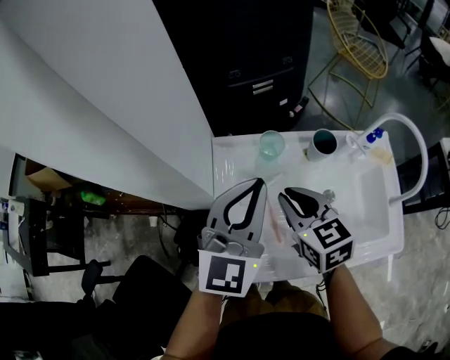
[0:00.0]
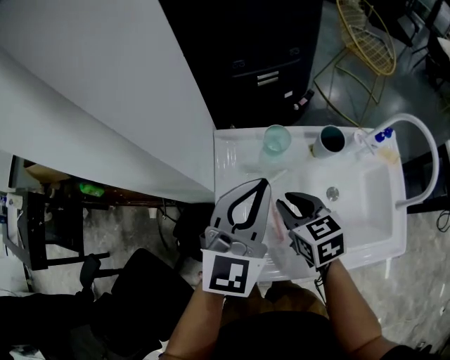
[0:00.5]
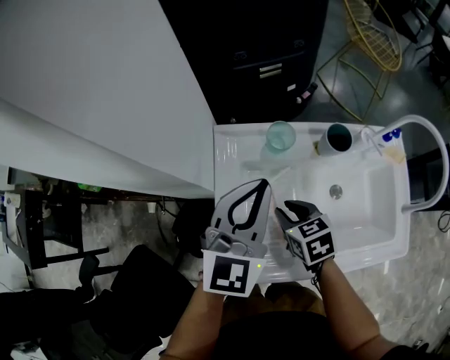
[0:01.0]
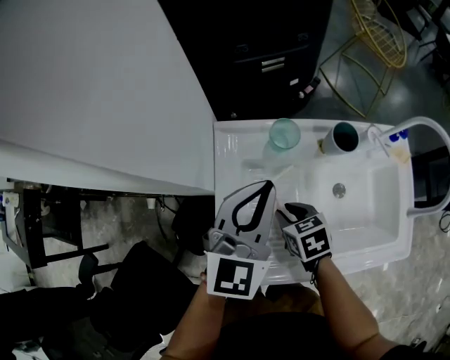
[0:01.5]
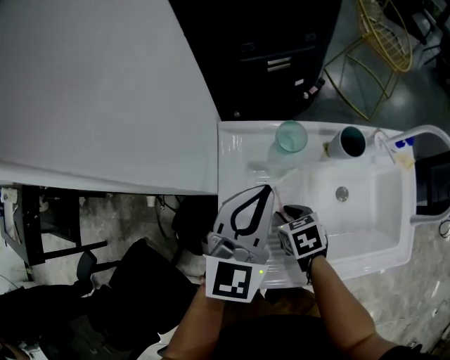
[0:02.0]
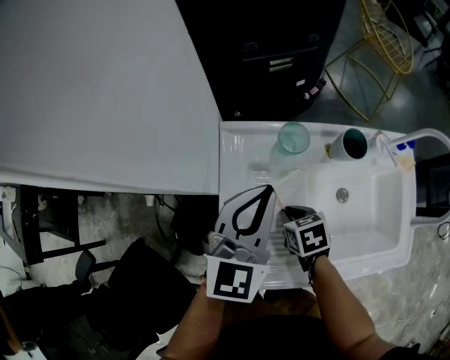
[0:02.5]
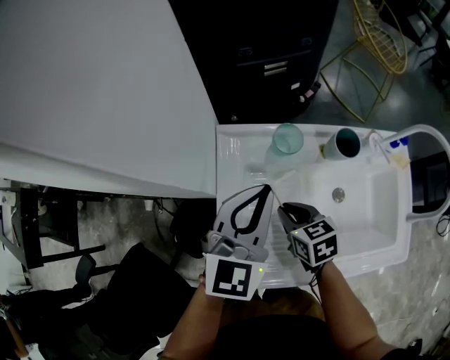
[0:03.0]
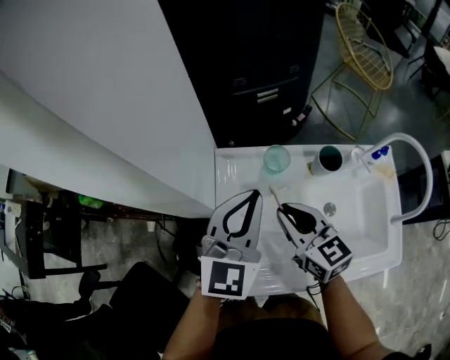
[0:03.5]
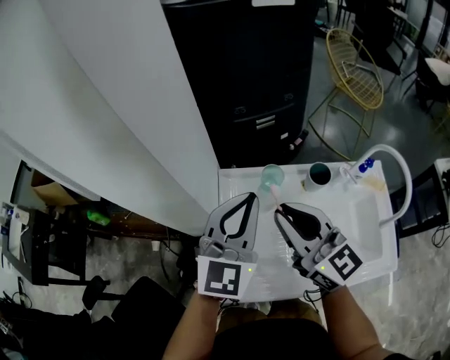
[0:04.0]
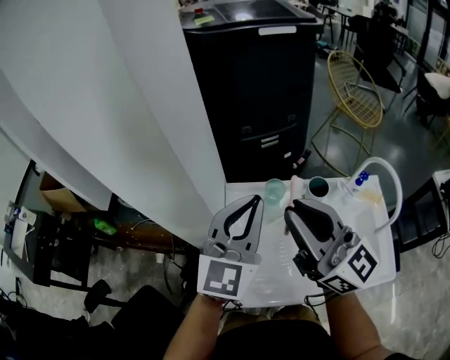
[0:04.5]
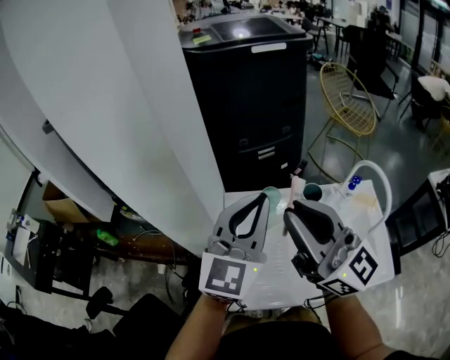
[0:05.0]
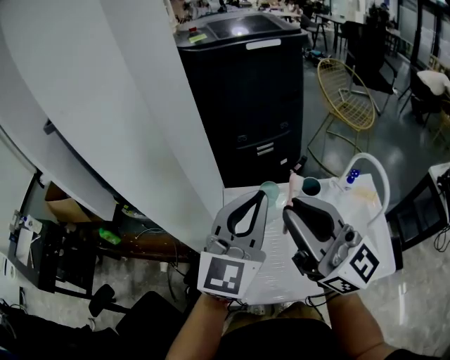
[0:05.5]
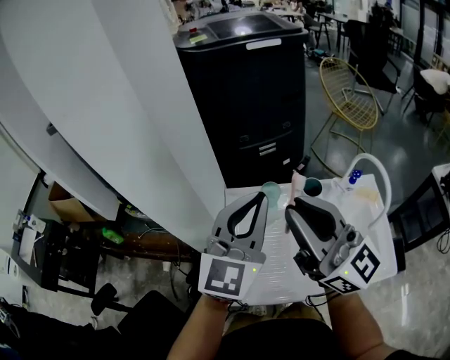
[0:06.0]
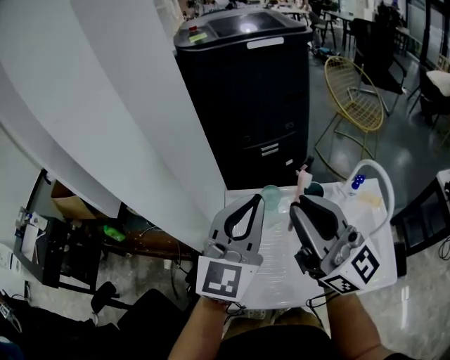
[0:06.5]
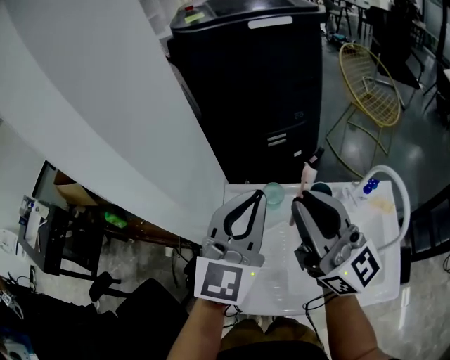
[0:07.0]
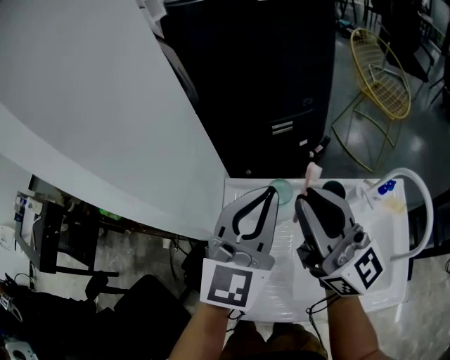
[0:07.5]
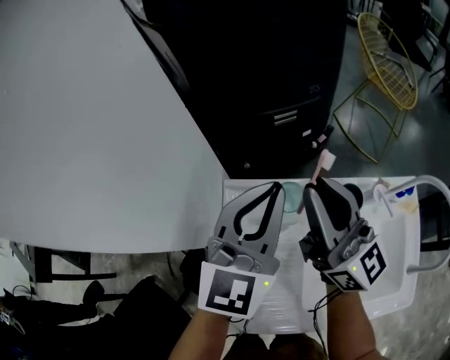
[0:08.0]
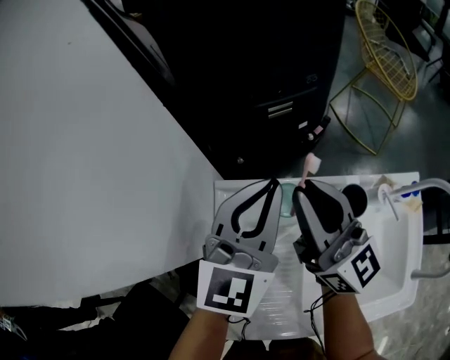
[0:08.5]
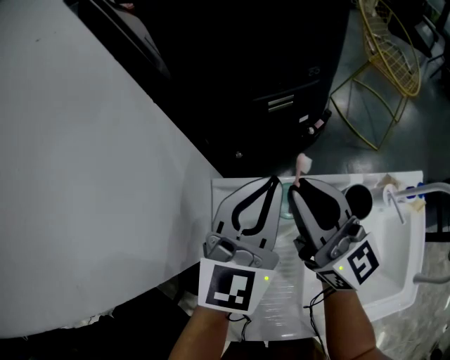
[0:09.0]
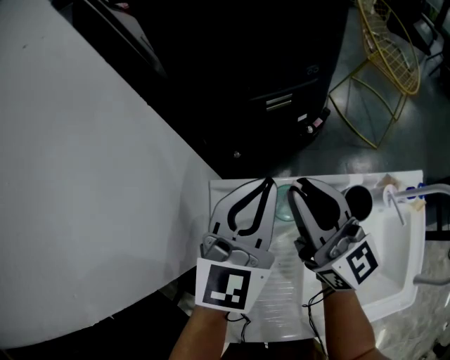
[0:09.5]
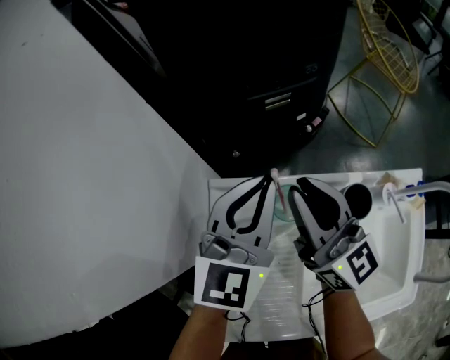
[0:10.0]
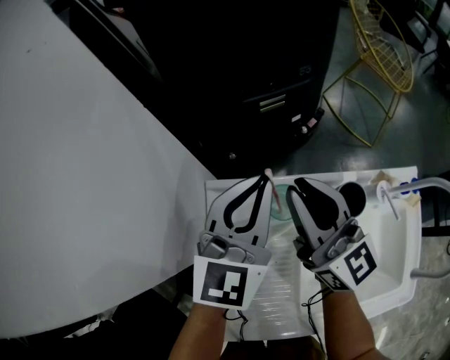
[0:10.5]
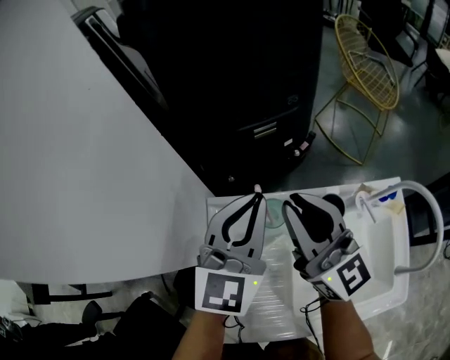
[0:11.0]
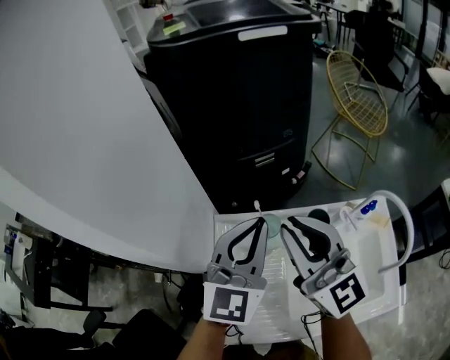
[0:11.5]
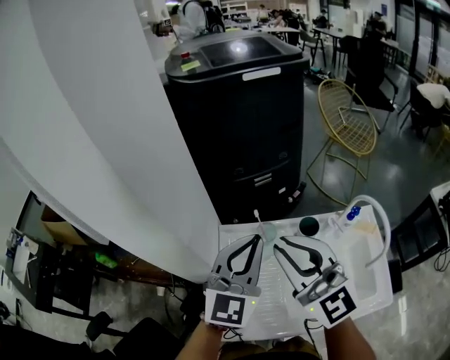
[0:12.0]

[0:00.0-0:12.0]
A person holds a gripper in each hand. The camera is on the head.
0:00.0 to 0:02.0: The left gripper is displaced downward by some 10 cm. The right gripper shifts some 20 cm downward, and tips its fingers downward by roughly 30 degrees.
0:02.0 to 0:04.0: The left gripper moves upward, roughly 10 cm; the right gripper is displaced upward by some 35 cm, and tilts its fingers approximately 70 degrees upward.
0:04.0 to 0:06.0: The left gripper travels upward and backward by approximately 10 cm. Meanwhile the right gripper is displaced upward and backward by roughly 15 cm, and turns by some 20 degrees.
0:06.0 to 0:08.0: The two grippers go about 20 cm forward and downward.
0:08.0 to 0:10.0: The right gripper shifts some 10 cm downward. The left gripper goes about 10 cm downward and forward.
0:10.0 to 0:12.0: The grippers both shift upward and backward by roughly 25 cm. The right gripper changes its angle by about 30 degrees.

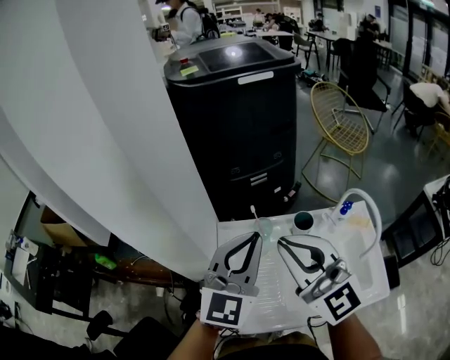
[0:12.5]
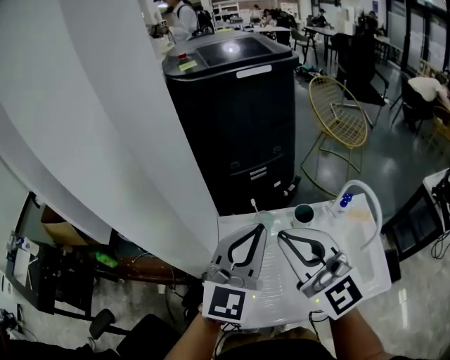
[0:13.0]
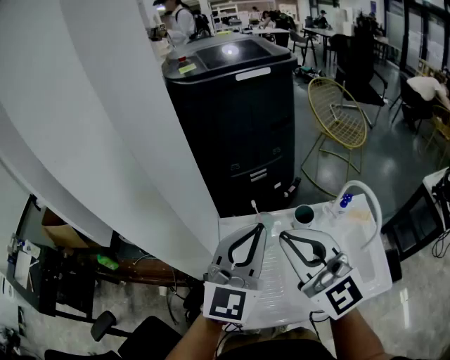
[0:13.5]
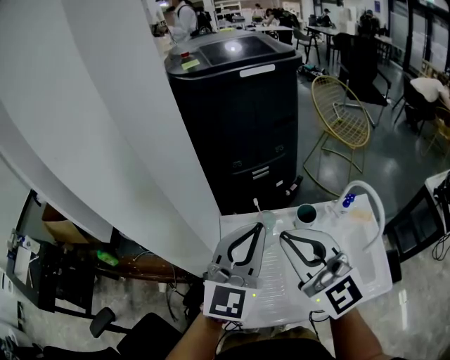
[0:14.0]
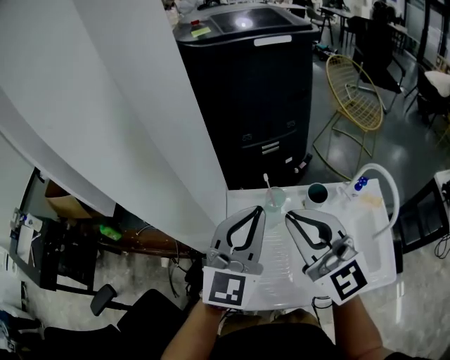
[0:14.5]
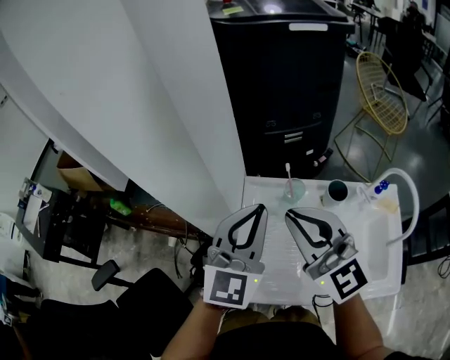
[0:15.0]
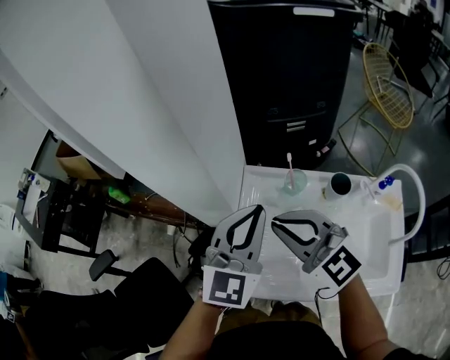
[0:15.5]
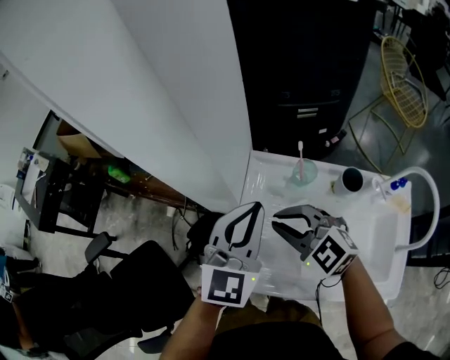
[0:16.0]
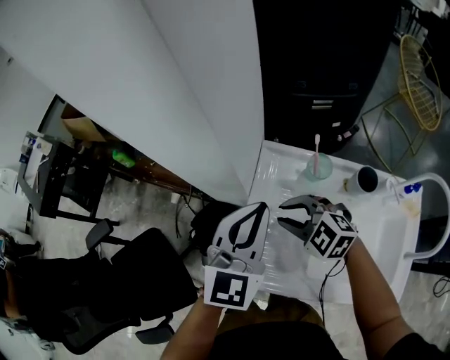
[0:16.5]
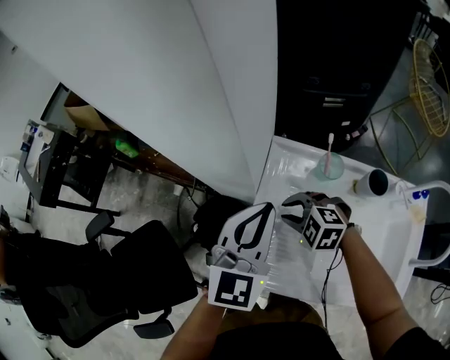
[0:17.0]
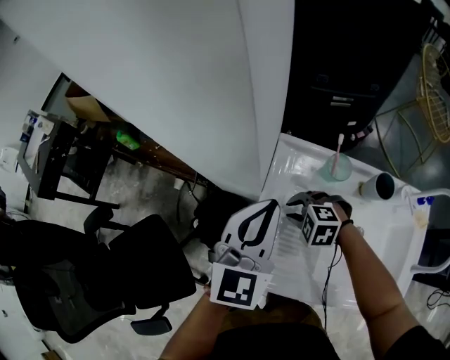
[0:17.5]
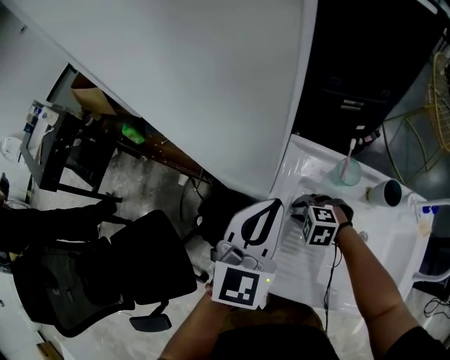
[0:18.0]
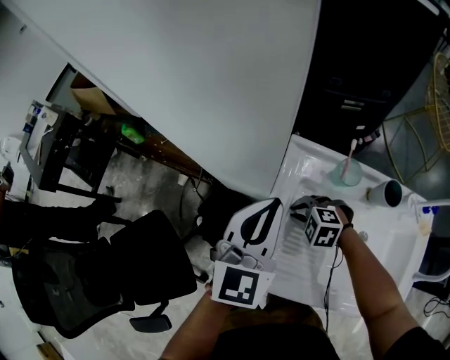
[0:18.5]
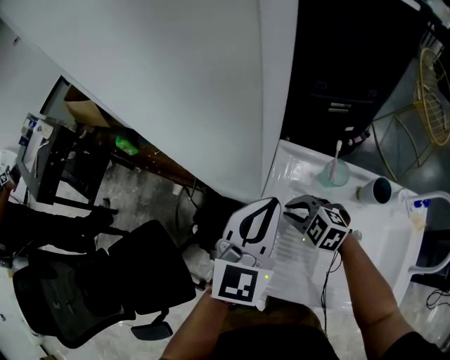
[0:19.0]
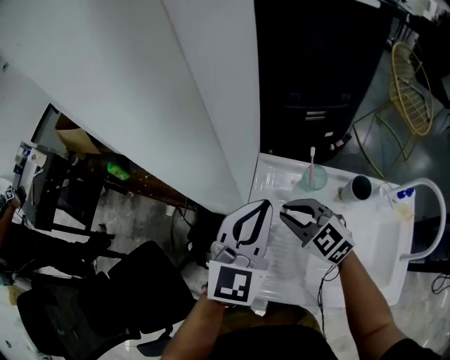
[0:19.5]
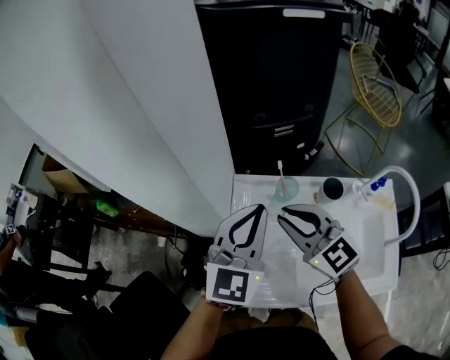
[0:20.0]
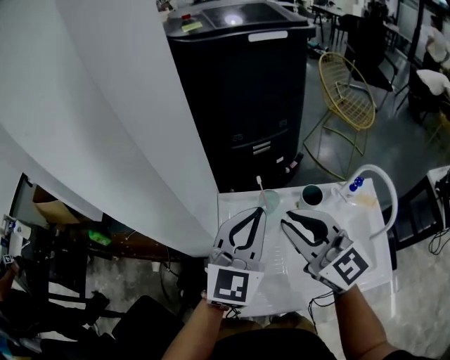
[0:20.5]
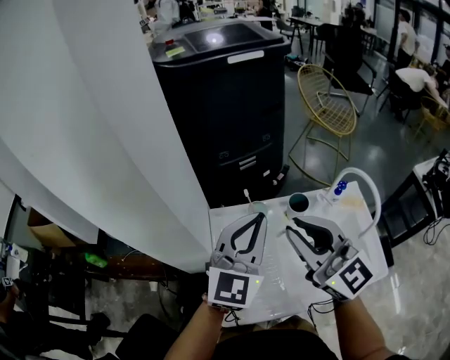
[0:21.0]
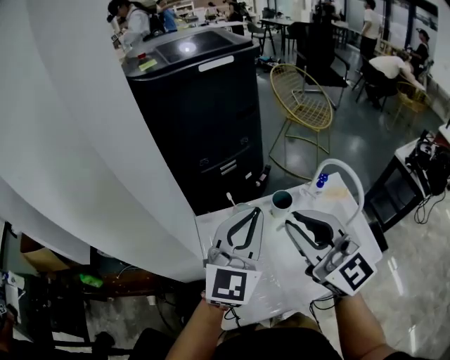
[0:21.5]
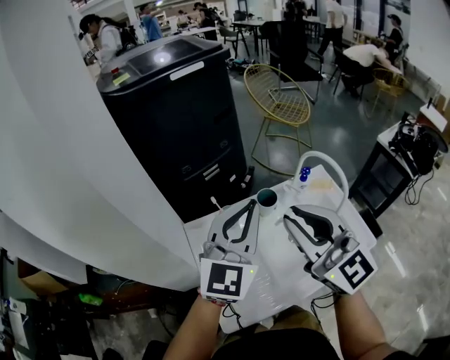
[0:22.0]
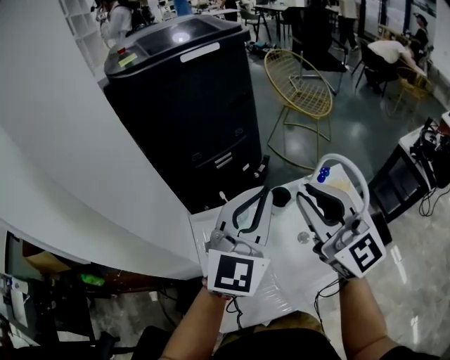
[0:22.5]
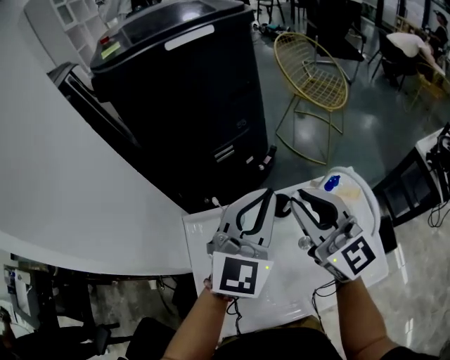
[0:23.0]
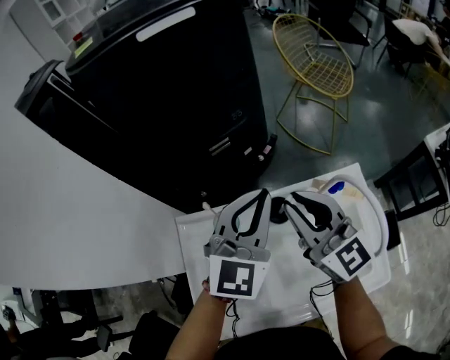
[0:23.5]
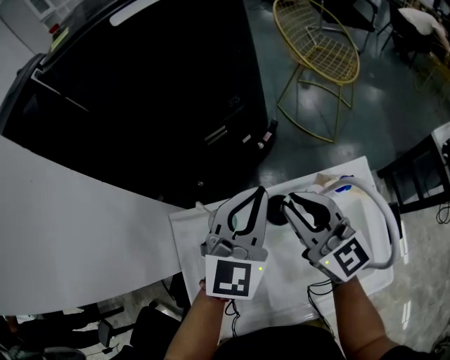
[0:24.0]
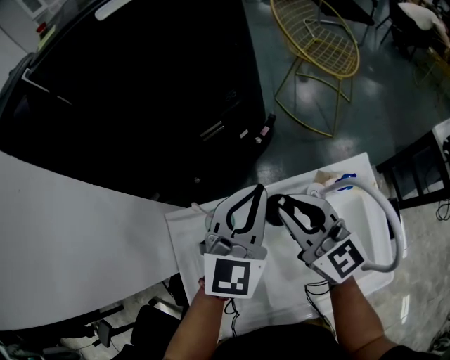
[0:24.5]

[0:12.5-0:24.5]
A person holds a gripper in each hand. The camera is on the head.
0:12.5 to 0:14.5: There are only small adjustments of the grippers.
0:14.5 to 0:16.5: The right gripper moves downward, approximately 30 cm, and angles its fingers downward, by roughly 50 degrees. The left gripper is displaced downward by roughly 10 cm, and swivels roughly 20 degrees.
0:16.5 to 0:18.5: The right gripper travels downward by about 15 cm, and changes its angle by about 20 degrees. The left gripper ends up some 5 cm from where it was.
0:18.5 to 0:20.5: The right gripper is displaced upward by roughly 35 cm, and angles its fingers upward, by about 60 degrees, while the left gripper changes place by approximately 15 cm, and rotates about 20 degrees.
0:20.5 to 0:22.5: The two grippers go roughly 15 cm to the right and upward. The right gripper turns by roughly 20 degrees.
0:22.5 to 0:24.5: Both grippers move downward and forward, roughly 20 cm. The right gripper changes its angle by roughly 20 degrees.

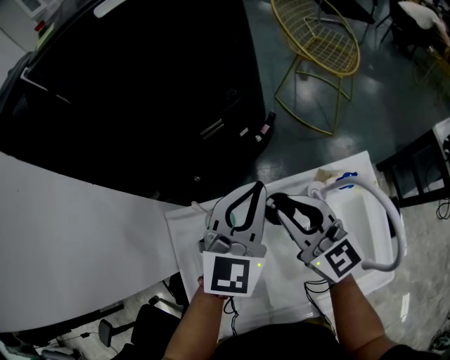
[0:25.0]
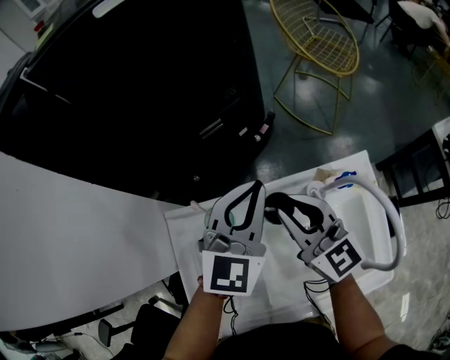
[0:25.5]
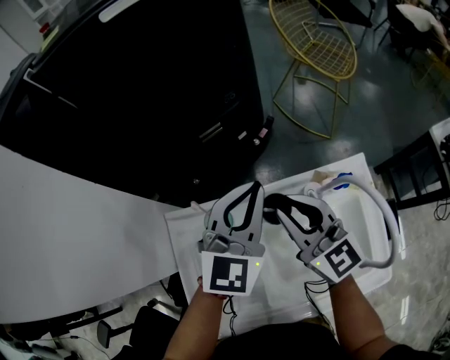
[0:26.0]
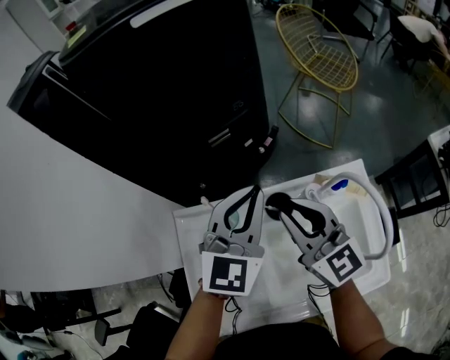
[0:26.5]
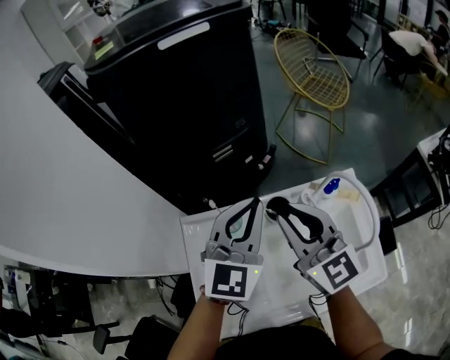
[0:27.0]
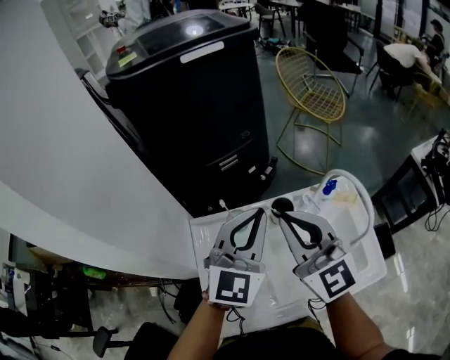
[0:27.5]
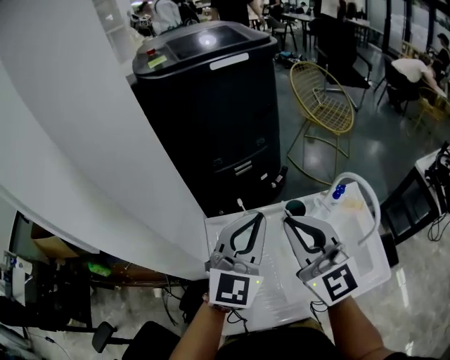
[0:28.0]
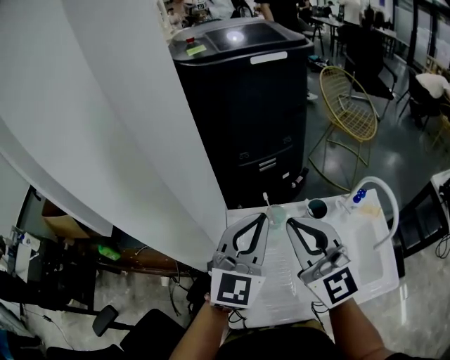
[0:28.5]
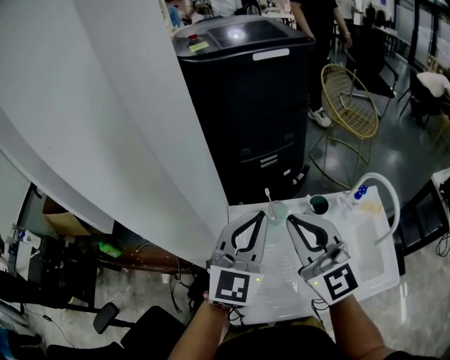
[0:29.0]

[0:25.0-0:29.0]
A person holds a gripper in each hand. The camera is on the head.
0:25.0 to 0:27.0: The two grippers go some 10 cm upward and backward.
0:27.0 to 0:29.0: The right gripper is displaced to the left, backward and upward by about 15 cm, while the left gripper travels to the left and backward by some 15 cm.
